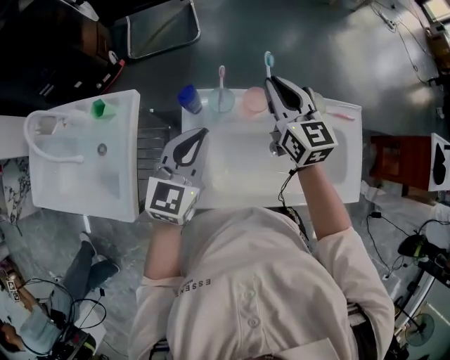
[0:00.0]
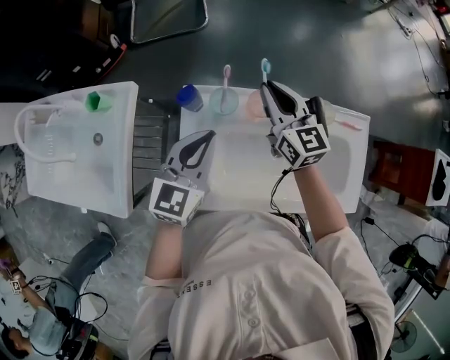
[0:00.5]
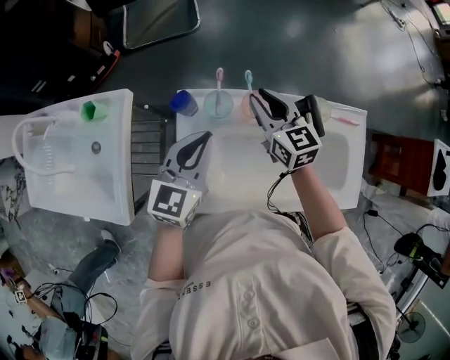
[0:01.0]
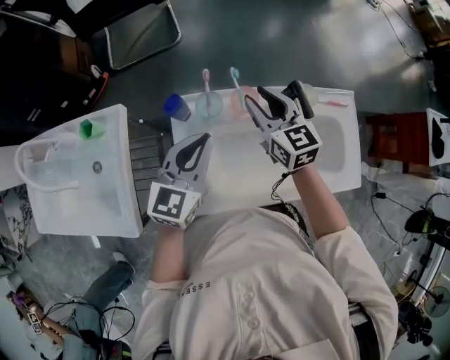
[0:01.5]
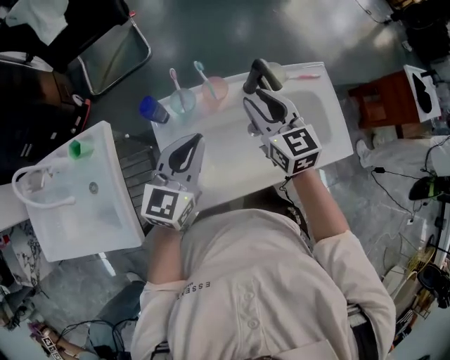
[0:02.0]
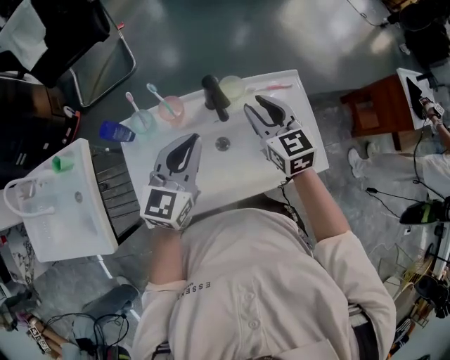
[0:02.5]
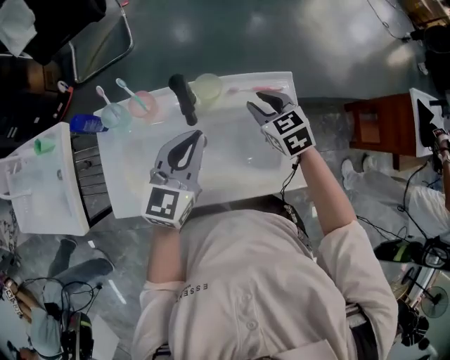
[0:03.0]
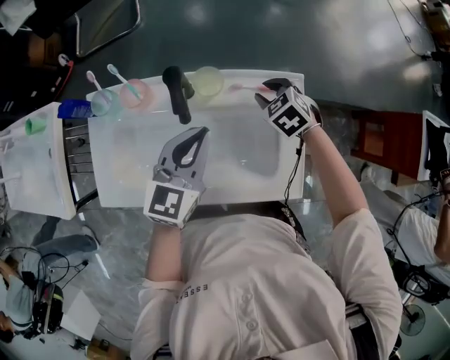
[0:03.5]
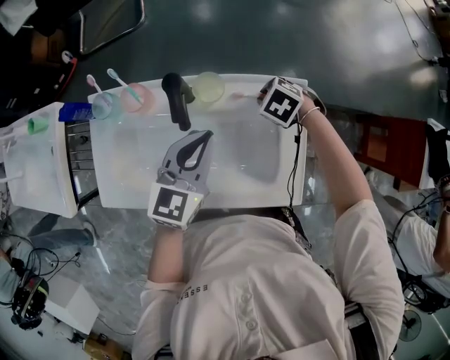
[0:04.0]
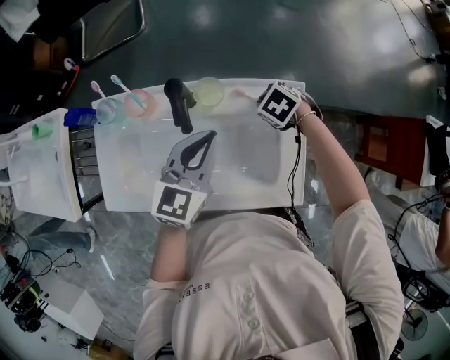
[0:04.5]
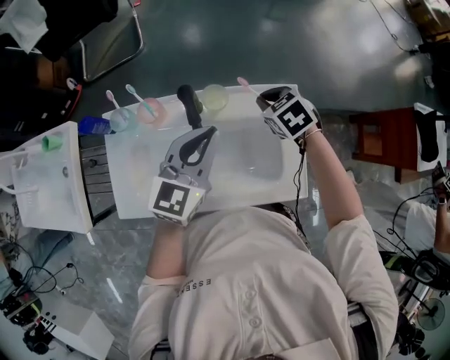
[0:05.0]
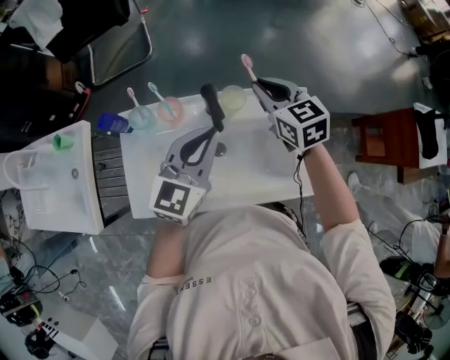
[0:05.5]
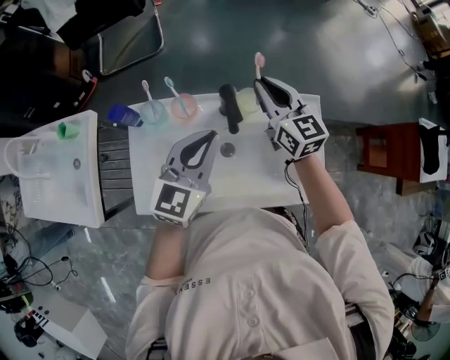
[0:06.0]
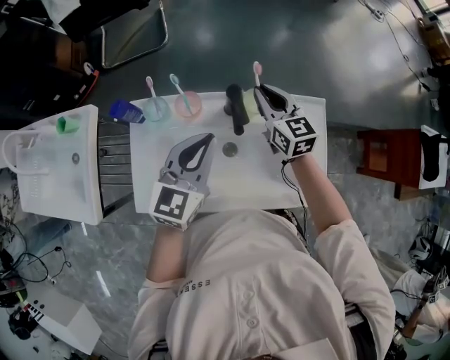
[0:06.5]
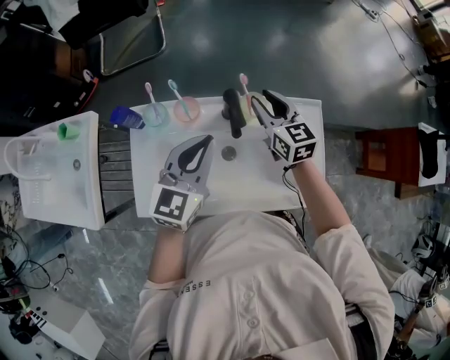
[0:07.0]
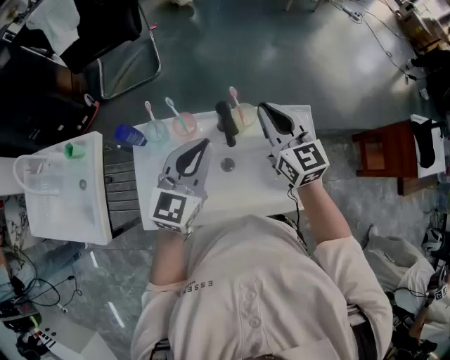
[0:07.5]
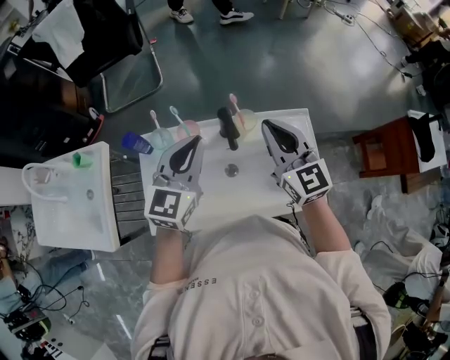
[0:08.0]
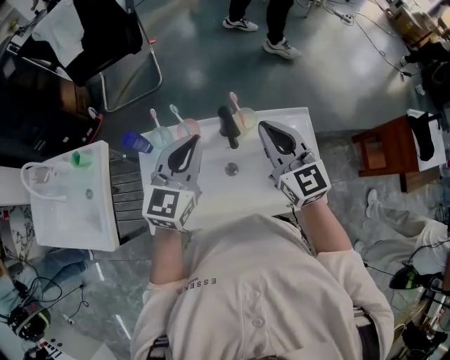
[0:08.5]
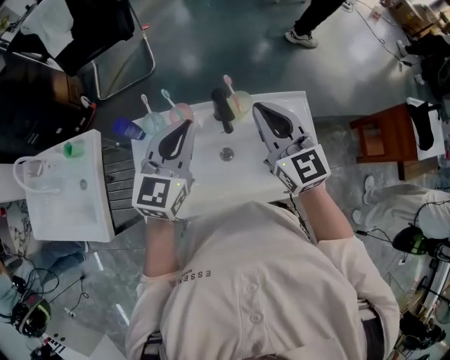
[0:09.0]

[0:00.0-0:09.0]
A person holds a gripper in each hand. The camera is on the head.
0:00.0 to 0:02.0: The right gripper travels backward and to the right by about 10 cm, and opens. The left gripper is displaced to the right by about 5 cm.
0:02.0 to 0:04.5: The left gripper ends up roughly 30 cm from where it was; the right gripper ends up some 35 cm from where it was, angles its fingers downward, by approximately 60 degrees, and closes.
0:04.5 to 0:07.0: The right gripper heads upward, covering approximately 15 cm, and tips its fingers upward by roughly 60 degrees; the left gripper ends up roughly 15 cm from where it was.
0:07.0 to 0:09.0: The right gripper is displaced upward and backward by some 15 cm, and closes. The left gripper moves upward, some 5 cm.

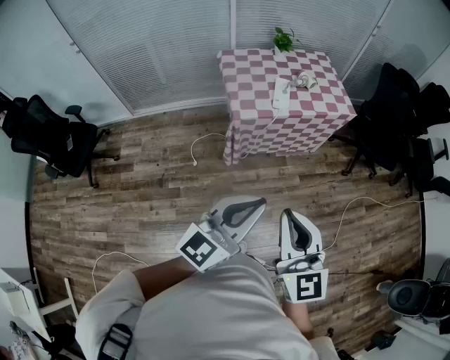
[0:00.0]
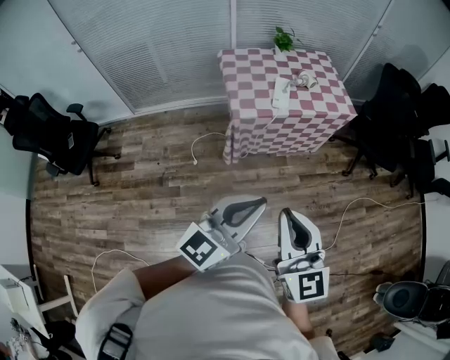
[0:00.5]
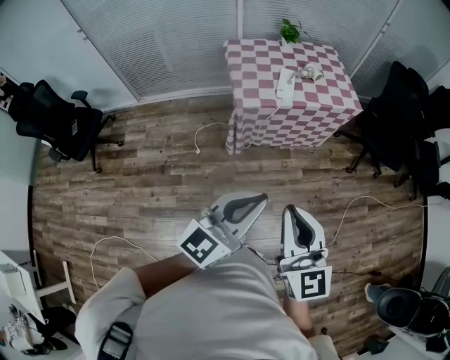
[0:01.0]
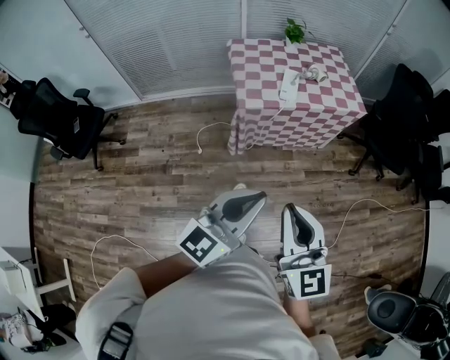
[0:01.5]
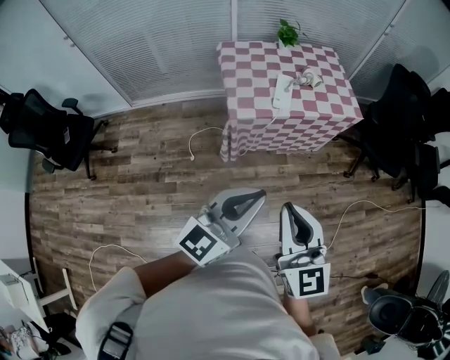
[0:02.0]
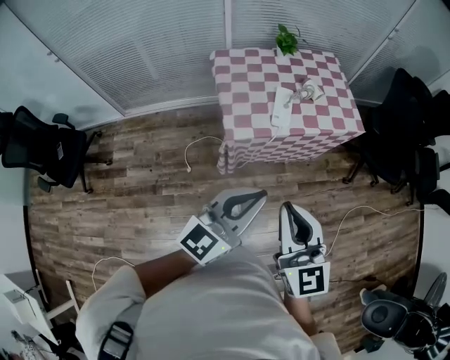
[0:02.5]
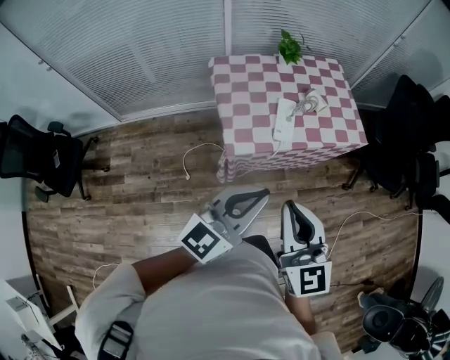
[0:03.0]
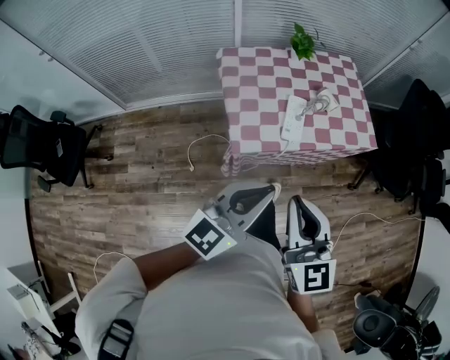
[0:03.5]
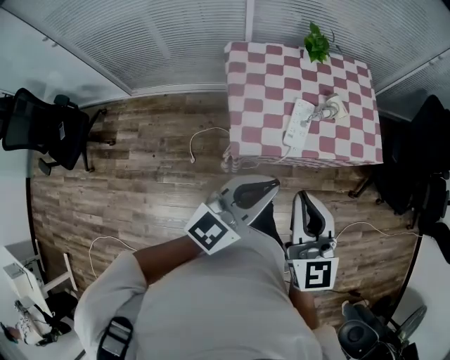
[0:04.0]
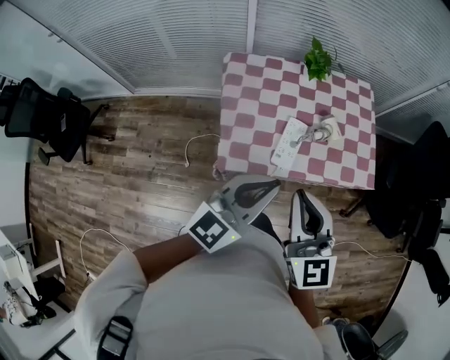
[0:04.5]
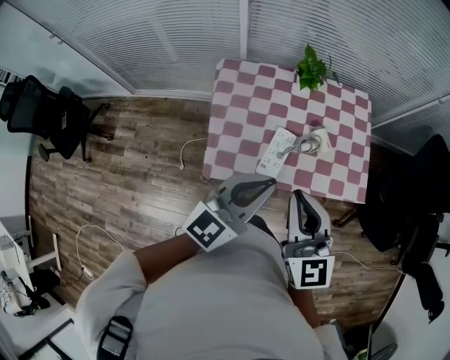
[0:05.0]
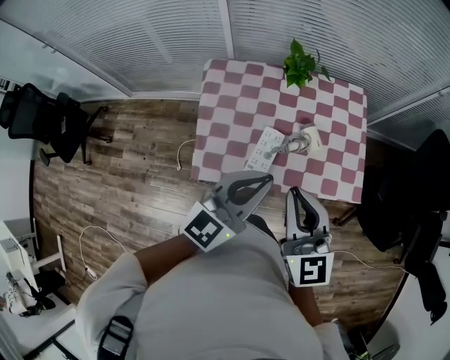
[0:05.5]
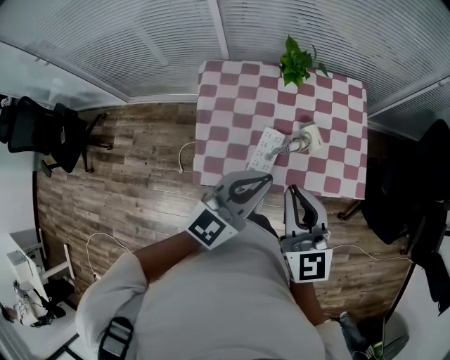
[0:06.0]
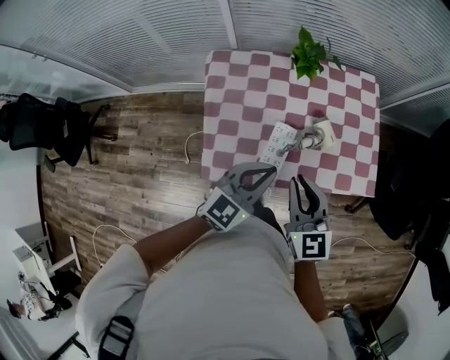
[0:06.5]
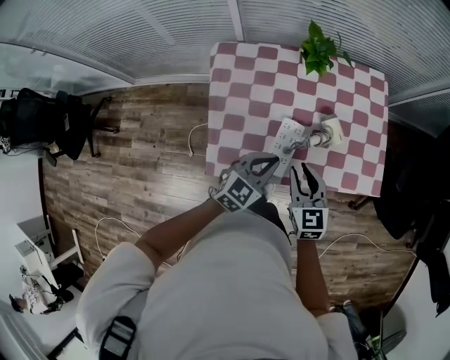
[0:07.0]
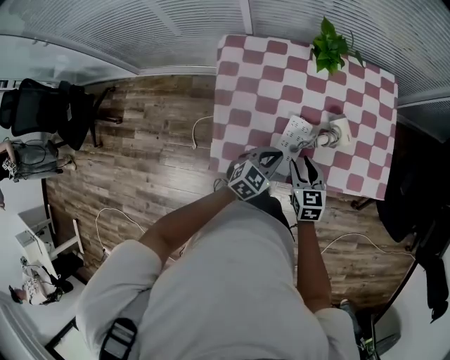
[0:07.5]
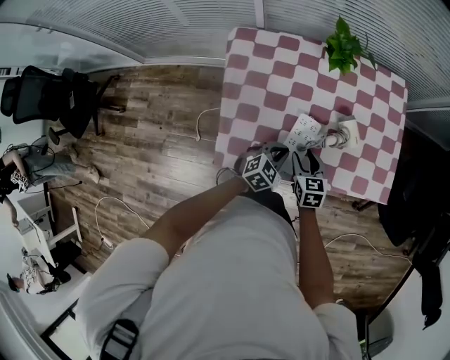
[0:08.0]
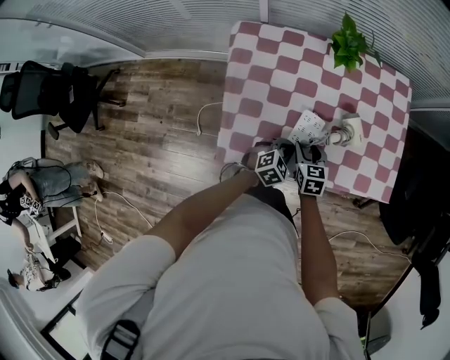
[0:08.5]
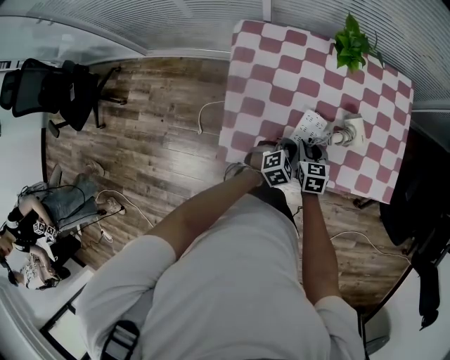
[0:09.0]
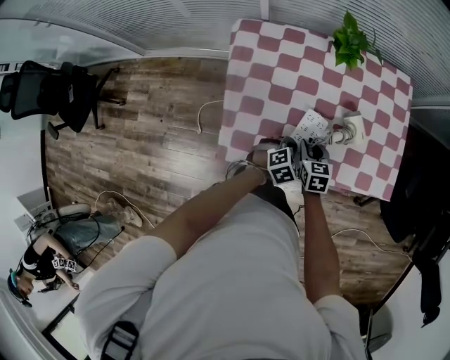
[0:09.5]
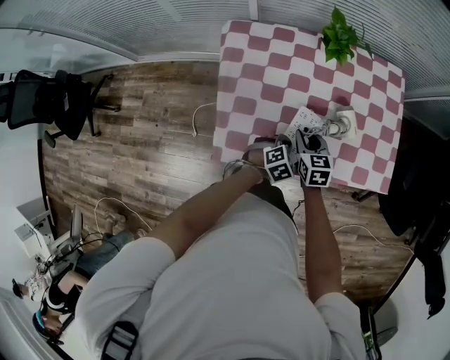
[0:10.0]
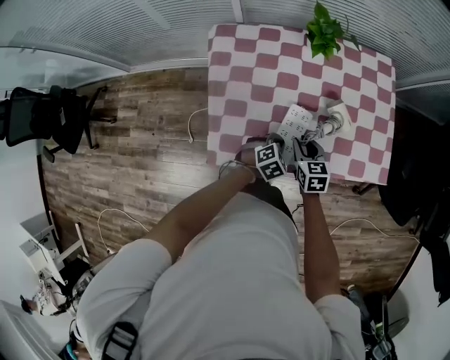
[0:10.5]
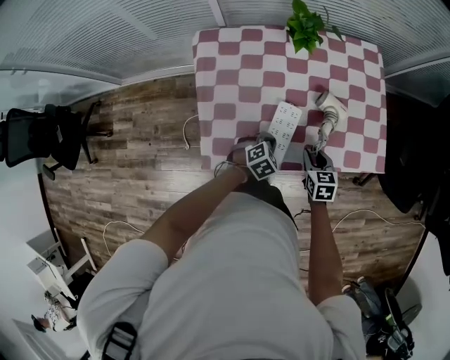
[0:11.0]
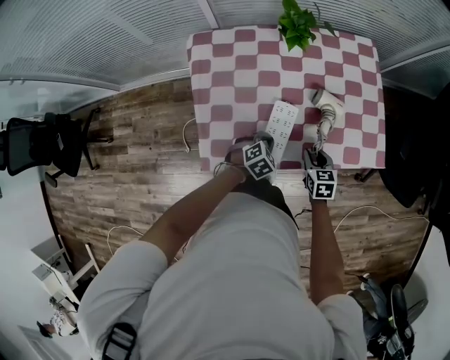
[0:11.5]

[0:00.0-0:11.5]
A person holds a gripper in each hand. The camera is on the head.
0:00.0 to 0:02.0: Both grippers travel together forward, roughly 10 cm.
0:02.0 to 0:04.0: Both grippers travel together forward, roughly 30 cm.
0:04.0 to 0:06.0: The grippers both shift forward and to the right by roughly 25 cm.
0:06.0 to 0:07.5: Both grippers travel together downward, about 30 cm. The right gripper angles its fingers downward, by about 30 degrees, and opens its fingers. Meanwhile the left gripper swivels about 30 degrees.
0:07.5 to 0:09.5: The two grippers go some 10 cm downward. The left gripper rotates about 30 degrees.
0:09.5 to 0:11.5: The right gripper shifts approximately 10 cm to the right.

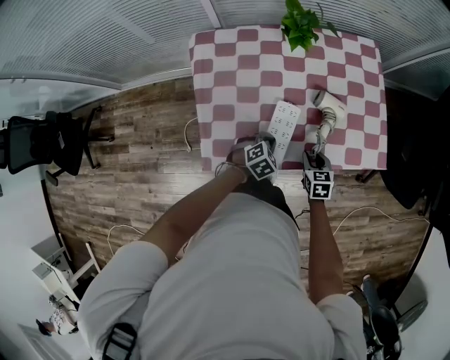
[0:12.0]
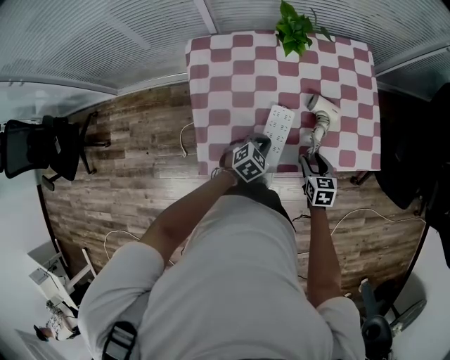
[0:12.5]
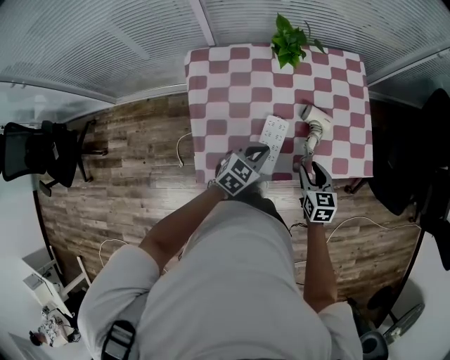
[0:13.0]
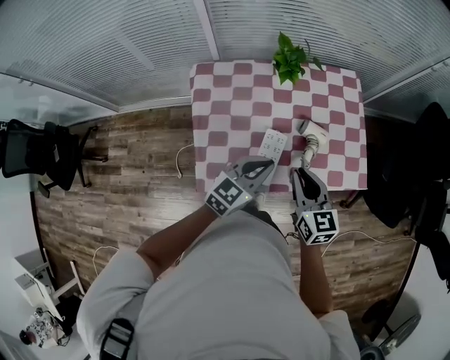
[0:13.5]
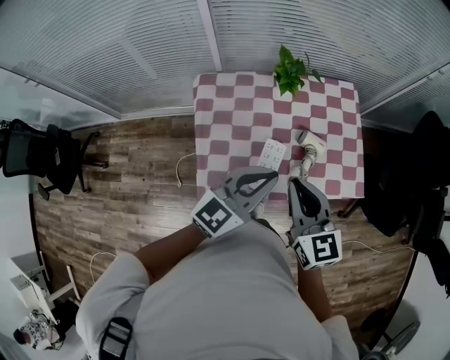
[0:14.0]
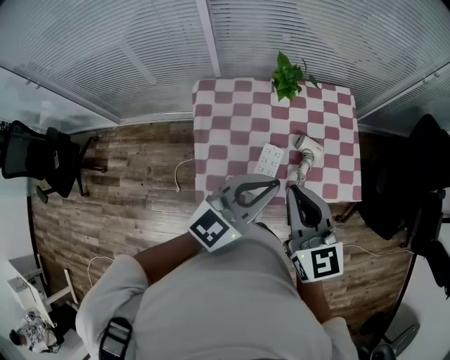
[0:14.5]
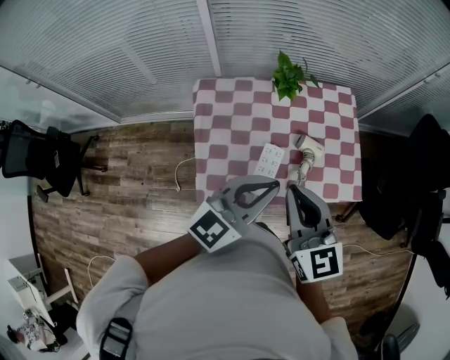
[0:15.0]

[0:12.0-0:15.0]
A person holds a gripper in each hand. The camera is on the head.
0:12.0 to 0:13.5: The two grippers go roughly 25 cm upward. The right gripper rotates approximately 30 degrees. The left gripper tips its fingers upward by some 40 degrees.
0:13.5 to 0:15.0: The two grippers go about 15 cm upward.

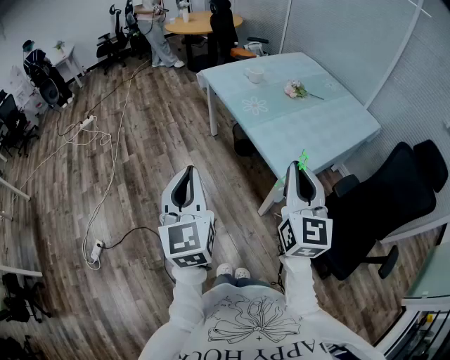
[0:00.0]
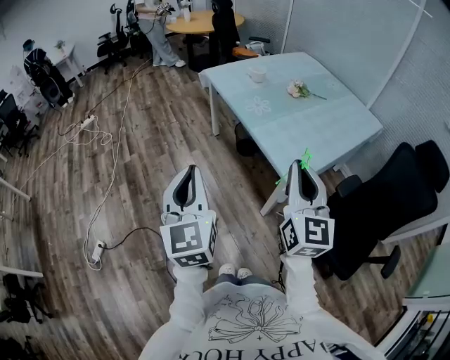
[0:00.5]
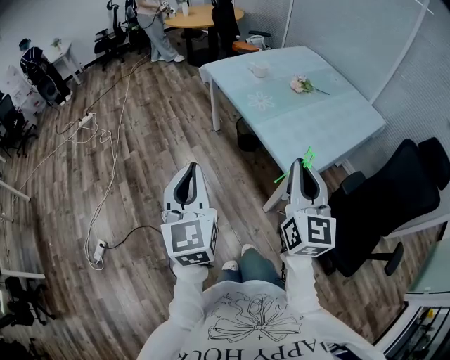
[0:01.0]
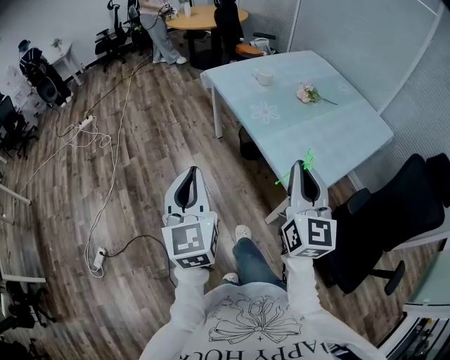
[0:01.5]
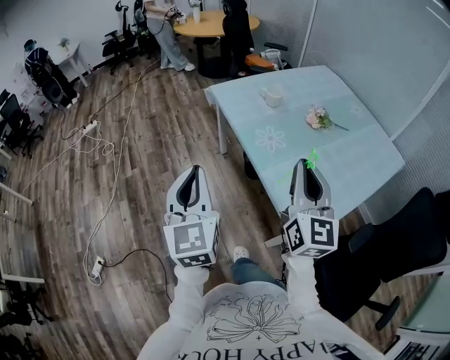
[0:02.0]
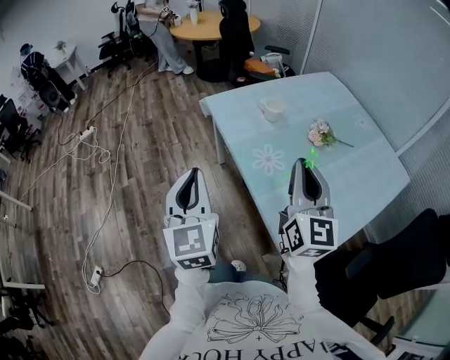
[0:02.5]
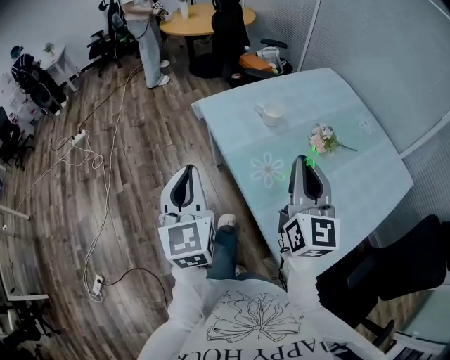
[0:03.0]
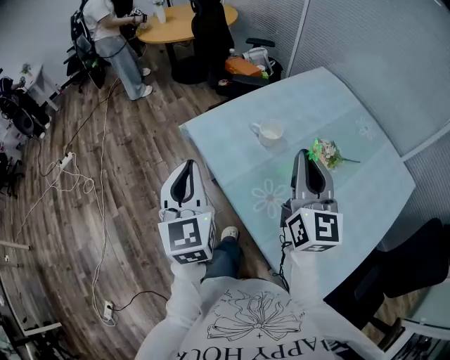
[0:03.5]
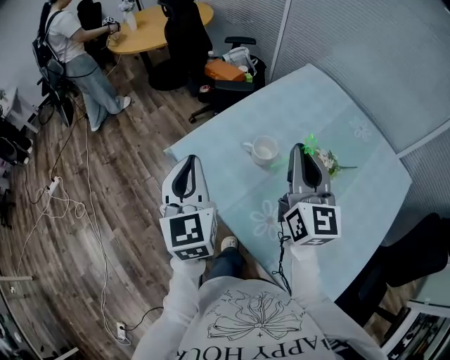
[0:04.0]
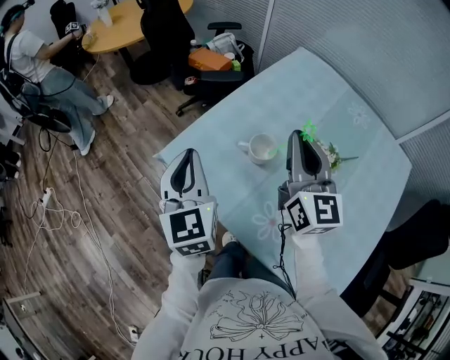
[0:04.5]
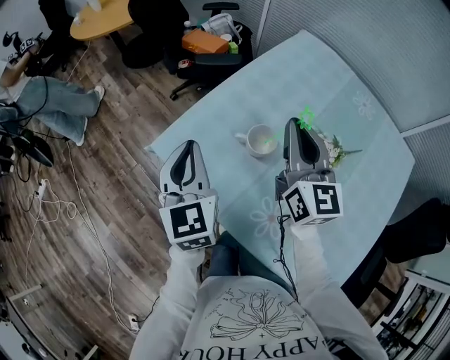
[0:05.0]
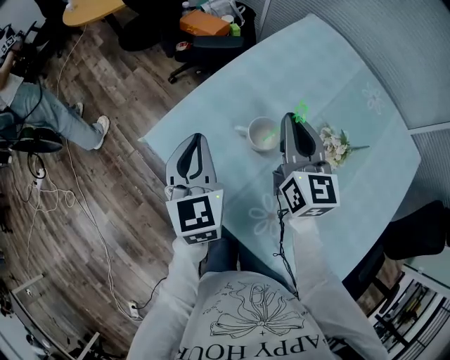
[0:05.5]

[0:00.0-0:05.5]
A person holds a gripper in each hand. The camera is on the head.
0:00.0 to 0:02.0: The two grippers go some 30 cm forward.
0:02.0 to 0:03.5: The grippers both shift forward by approximately 40 cm.
0:03.5 to 0:05.5: The two grippers go roughly 30 cm forward and downward.
